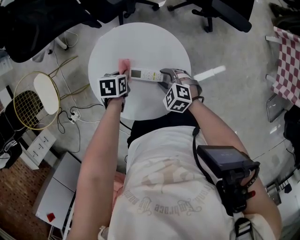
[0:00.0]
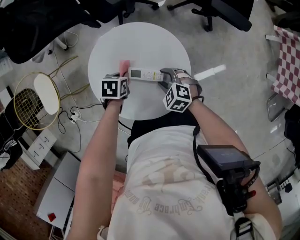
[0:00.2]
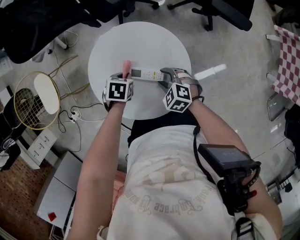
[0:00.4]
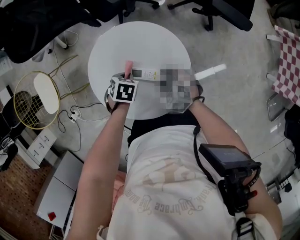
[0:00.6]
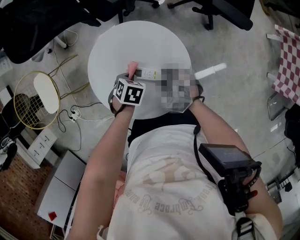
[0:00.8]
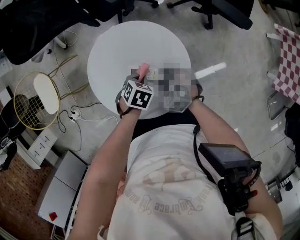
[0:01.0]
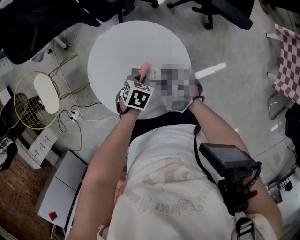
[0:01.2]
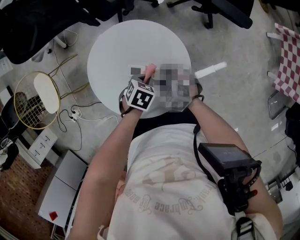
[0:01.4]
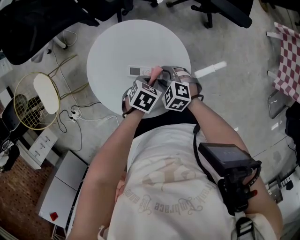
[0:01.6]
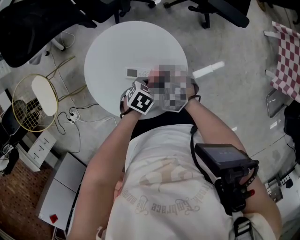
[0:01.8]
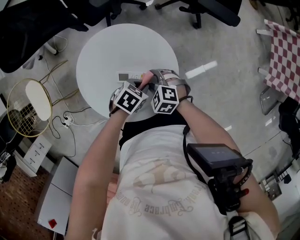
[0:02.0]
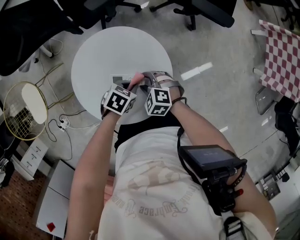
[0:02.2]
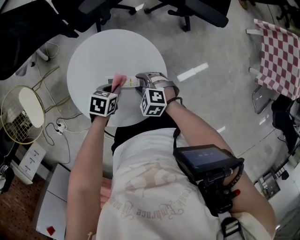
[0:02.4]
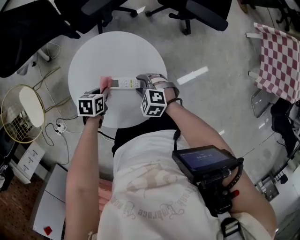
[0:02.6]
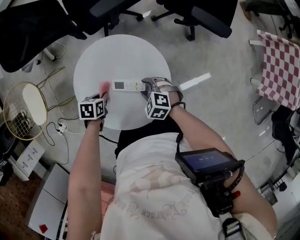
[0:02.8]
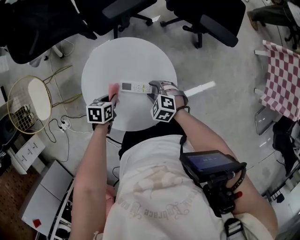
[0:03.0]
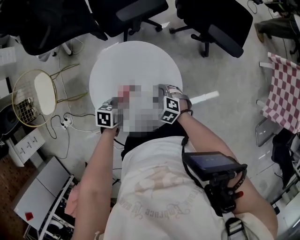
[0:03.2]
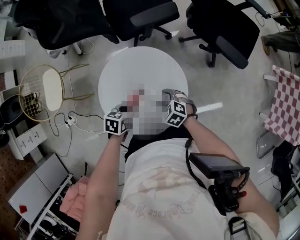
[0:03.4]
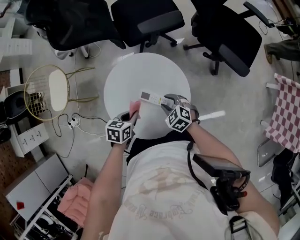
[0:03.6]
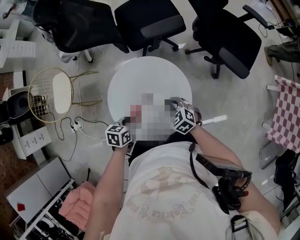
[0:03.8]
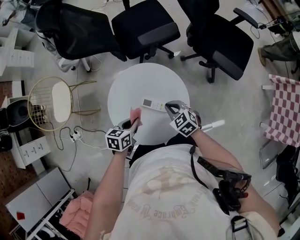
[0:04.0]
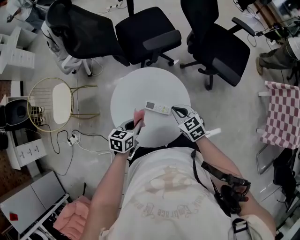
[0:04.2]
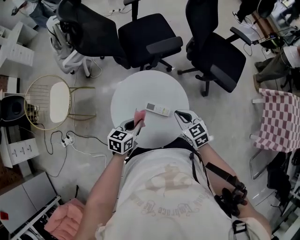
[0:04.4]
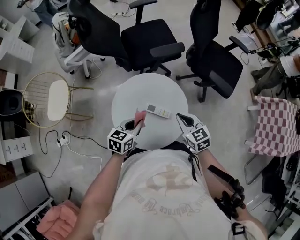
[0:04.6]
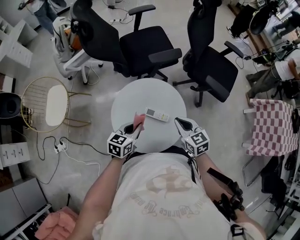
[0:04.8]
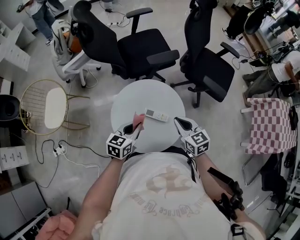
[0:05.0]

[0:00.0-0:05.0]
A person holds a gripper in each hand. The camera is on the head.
0.0 to 1.6 s: The left gripper changes place by about 15 cm, and changes its angle by roughly 30 degrees.
1.6 to 3.4 s: The left gripper shifts by approximately 10 cm, and turns by about 30 degrees.
3.4 to 5.0 s: The right gripper is displaced upward by roughly 25 cm, changes its angle by roughly 40 degrees, and closes its fingers. The left gripper is displaced upward by approximately 15 cm, and tips its fingers upward by about 30 degrees.

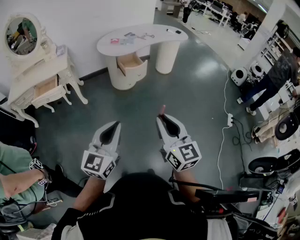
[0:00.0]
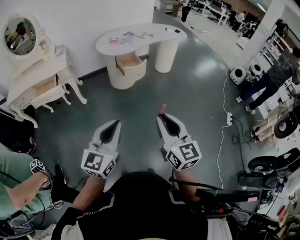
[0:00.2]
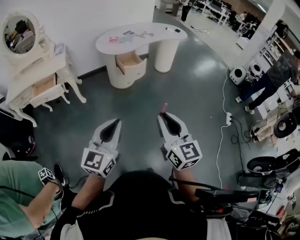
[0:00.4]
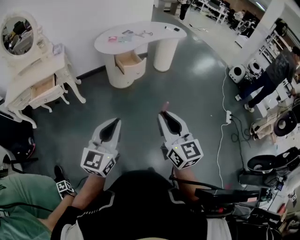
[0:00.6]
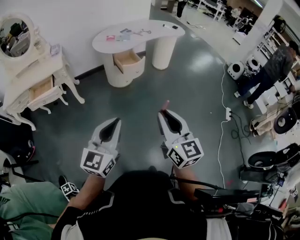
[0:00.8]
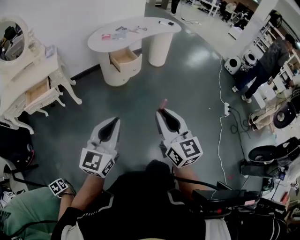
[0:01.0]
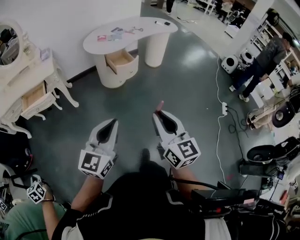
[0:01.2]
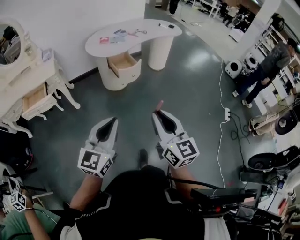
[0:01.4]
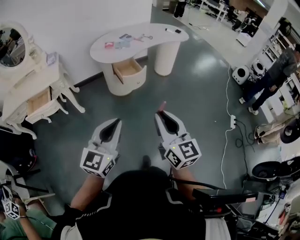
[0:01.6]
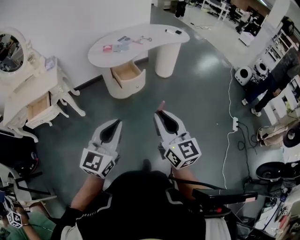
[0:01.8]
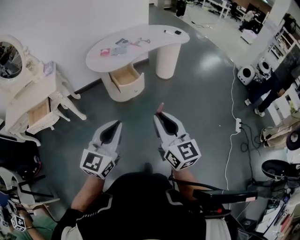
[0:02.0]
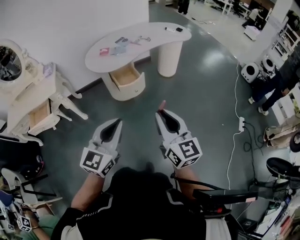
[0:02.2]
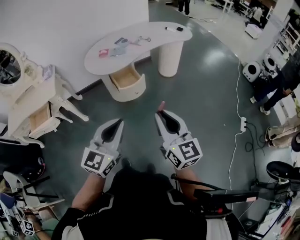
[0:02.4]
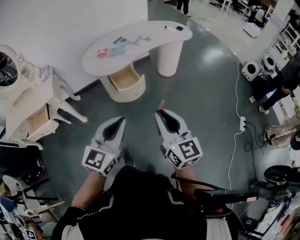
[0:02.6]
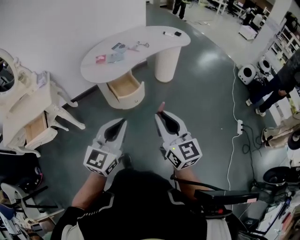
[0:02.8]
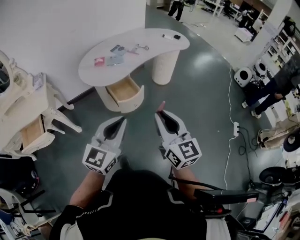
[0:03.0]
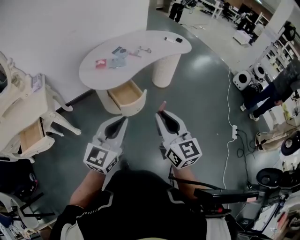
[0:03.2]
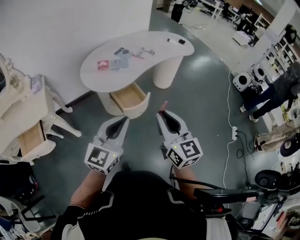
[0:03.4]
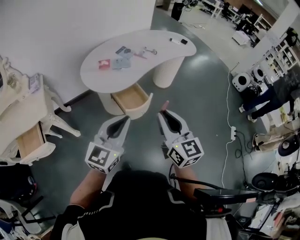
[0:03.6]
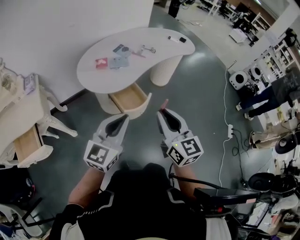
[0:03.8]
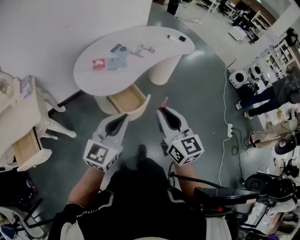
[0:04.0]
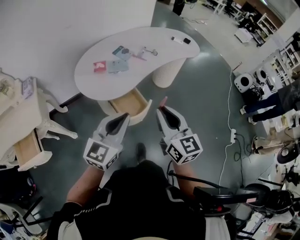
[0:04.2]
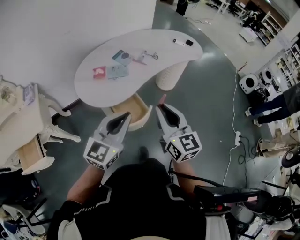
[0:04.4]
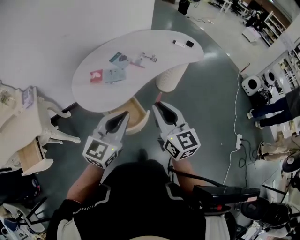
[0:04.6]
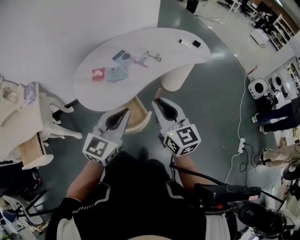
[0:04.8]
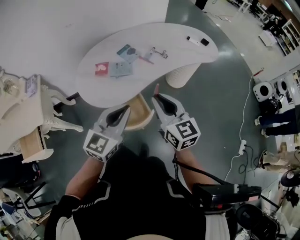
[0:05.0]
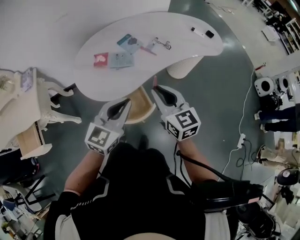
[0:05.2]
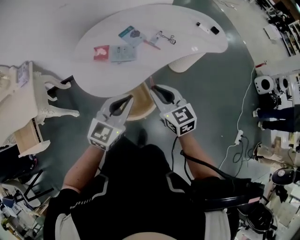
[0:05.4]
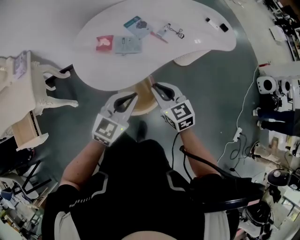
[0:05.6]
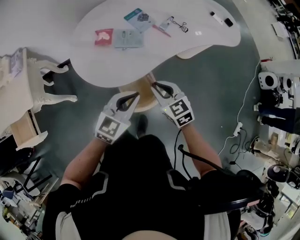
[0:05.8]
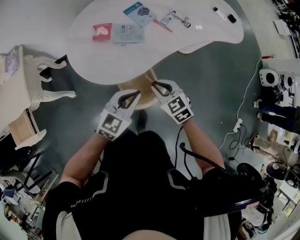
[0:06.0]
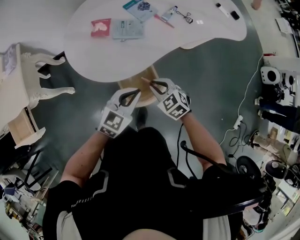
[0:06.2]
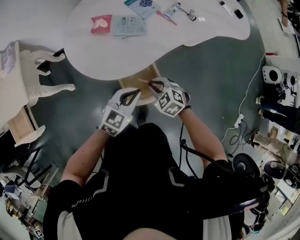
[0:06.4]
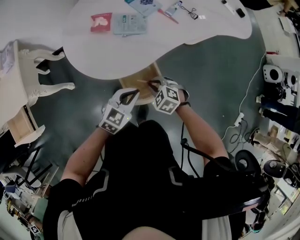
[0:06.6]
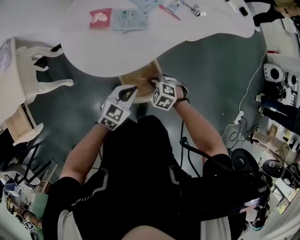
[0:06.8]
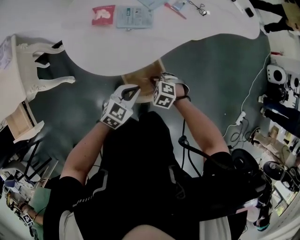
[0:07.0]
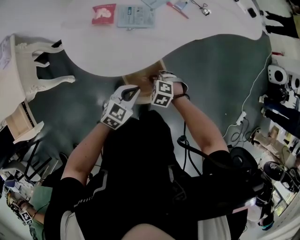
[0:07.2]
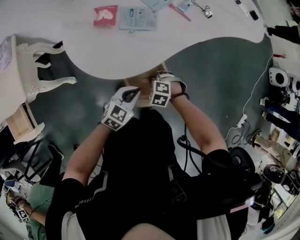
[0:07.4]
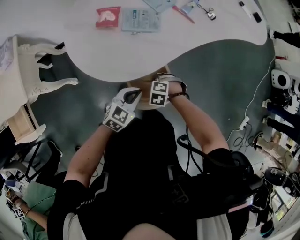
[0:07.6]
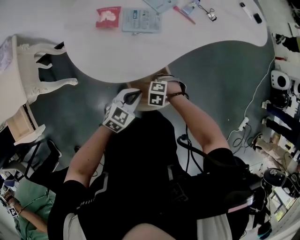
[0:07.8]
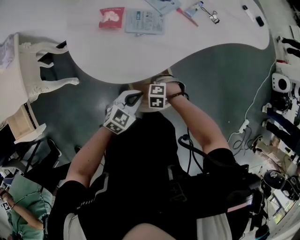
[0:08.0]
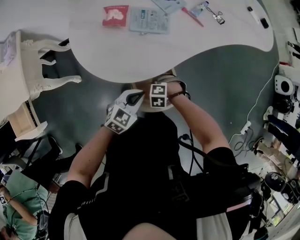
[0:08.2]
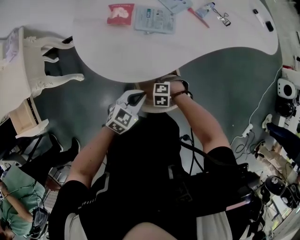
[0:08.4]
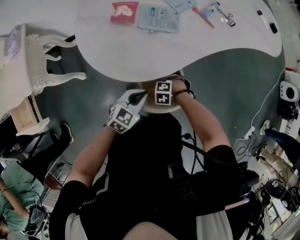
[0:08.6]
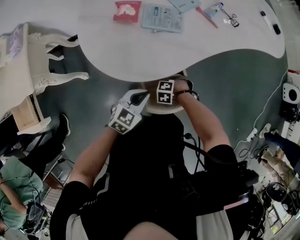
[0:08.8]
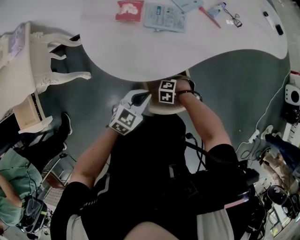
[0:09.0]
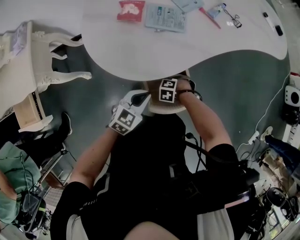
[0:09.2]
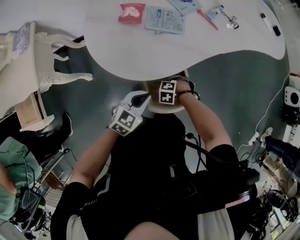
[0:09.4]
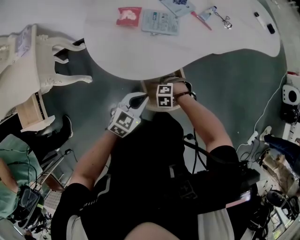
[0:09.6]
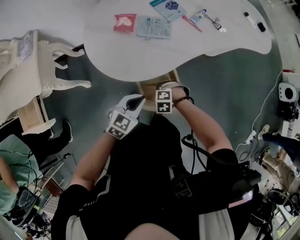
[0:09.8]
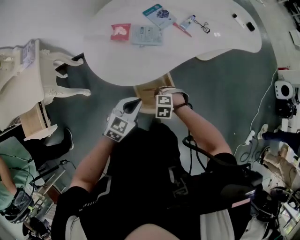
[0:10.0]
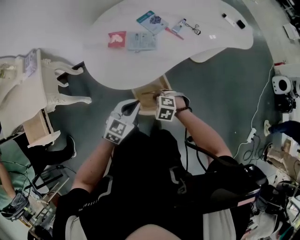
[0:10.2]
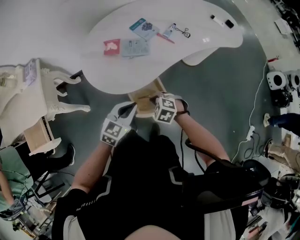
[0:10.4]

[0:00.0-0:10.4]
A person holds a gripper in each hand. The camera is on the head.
0.0 to 1.4 s: Both grippers travel together forward, some 10 cm.
1.4 to 3.0 s: Both grippers travel together forward, about 30 cm.
3.0 to 4.4 s: The two grippers go roughly 25 cm forward.
4.4 to 6.0 s: The two grippers go roughly 30 cm downward and forward. The right gripper tilts its fingers approximately 40 degrees downward.
6.0 to 7.4 s: Both grippers move downward, about 20 cm. The right gripper angles its fingers downward, by about 30 degrees.
7.4 to 9.0 s: The right gripper heads downward, covering roughly 10 cm.
9.0 to 10.4 s: Both grippers travel together upward, approximately 20 cm. The right gripper swivels some 30 degrees.

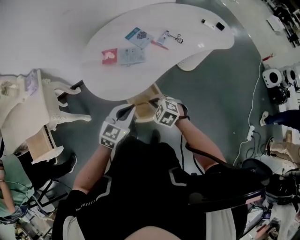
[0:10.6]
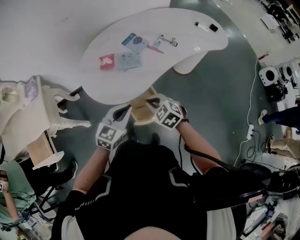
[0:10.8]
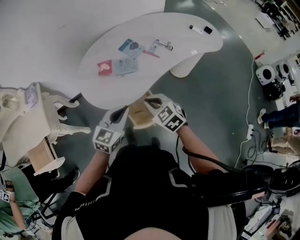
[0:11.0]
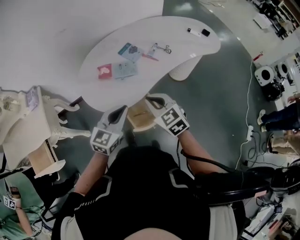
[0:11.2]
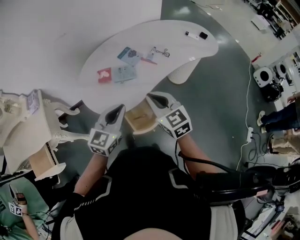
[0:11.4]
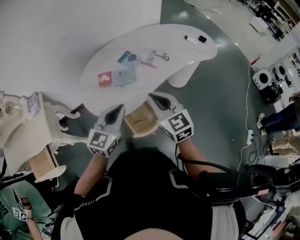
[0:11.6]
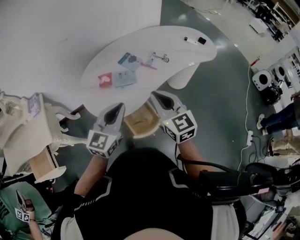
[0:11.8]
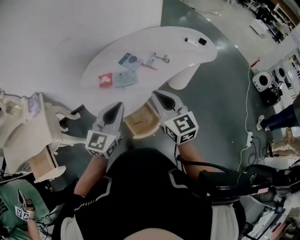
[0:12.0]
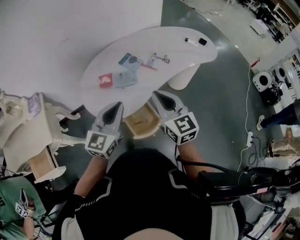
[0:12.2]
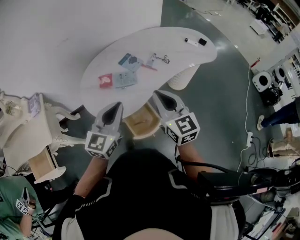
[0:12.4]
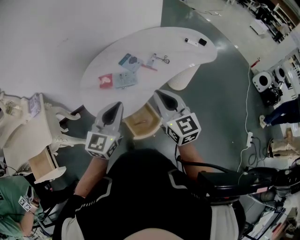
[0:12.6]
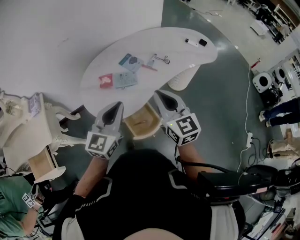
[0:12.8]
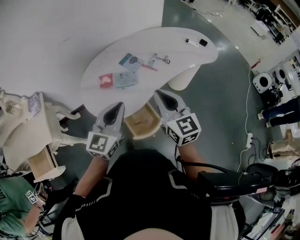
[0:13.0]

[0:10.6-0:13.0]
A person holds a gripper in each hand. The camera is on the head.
10.6 to 11.8 s: The right gripper goes about 25 cm upward, and tips its fingers upward by approximately 50 degrees. Meanwhile the left gripper moves upward, roughly 15 cm.
11.8 to 13.0 s: The grippers move only a little.

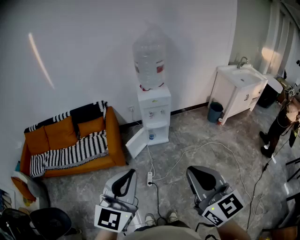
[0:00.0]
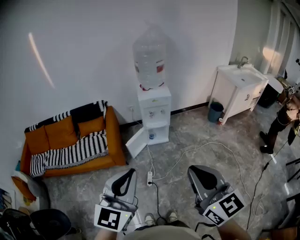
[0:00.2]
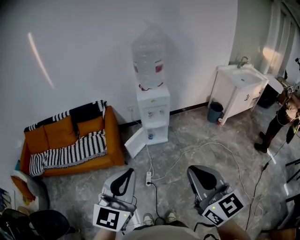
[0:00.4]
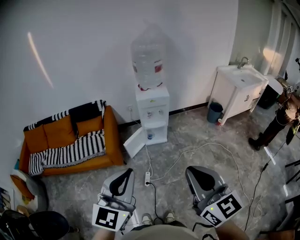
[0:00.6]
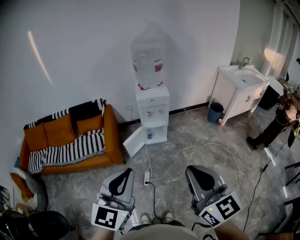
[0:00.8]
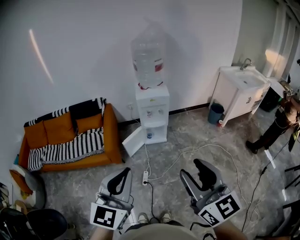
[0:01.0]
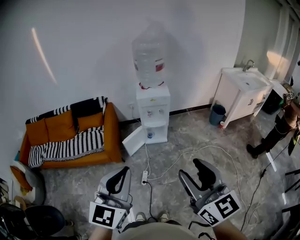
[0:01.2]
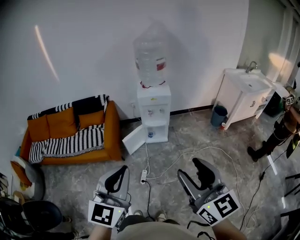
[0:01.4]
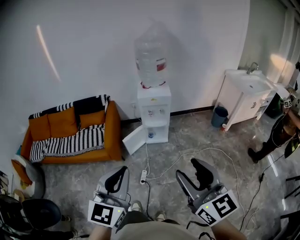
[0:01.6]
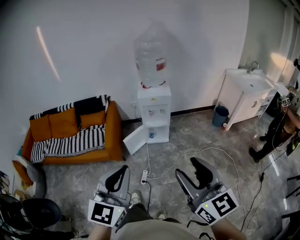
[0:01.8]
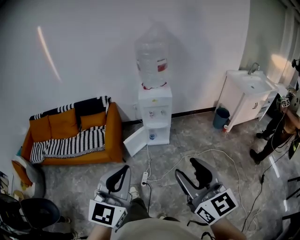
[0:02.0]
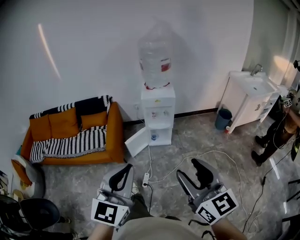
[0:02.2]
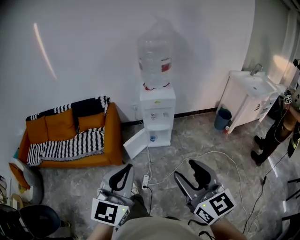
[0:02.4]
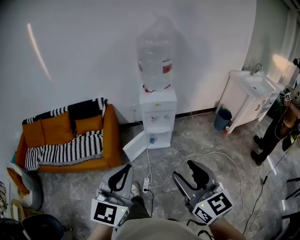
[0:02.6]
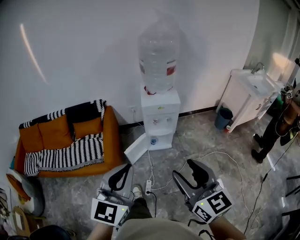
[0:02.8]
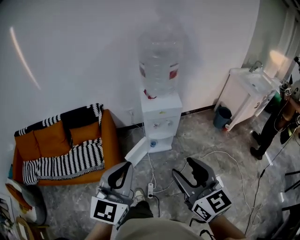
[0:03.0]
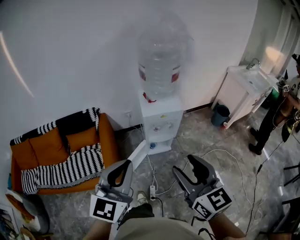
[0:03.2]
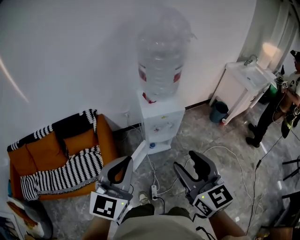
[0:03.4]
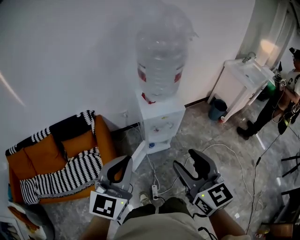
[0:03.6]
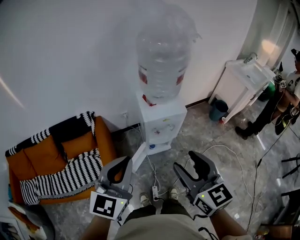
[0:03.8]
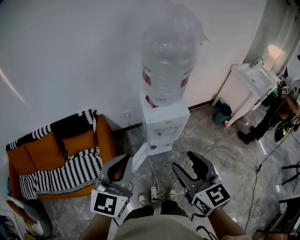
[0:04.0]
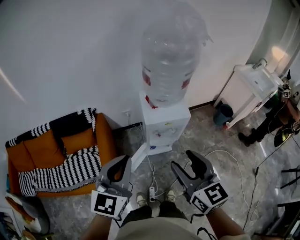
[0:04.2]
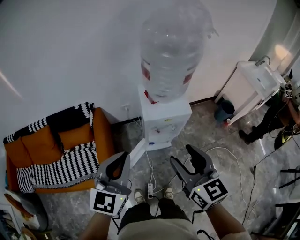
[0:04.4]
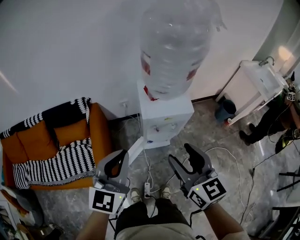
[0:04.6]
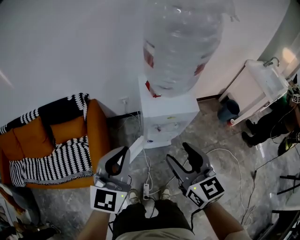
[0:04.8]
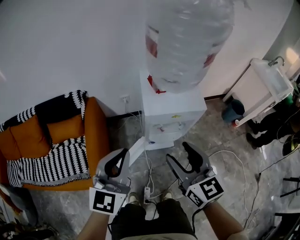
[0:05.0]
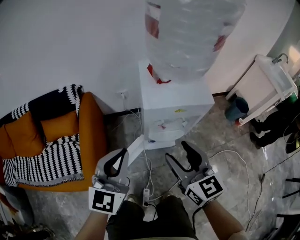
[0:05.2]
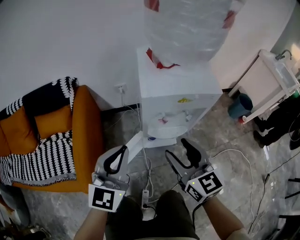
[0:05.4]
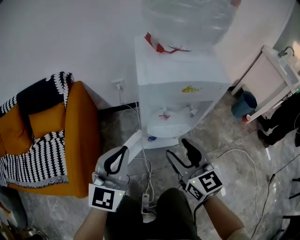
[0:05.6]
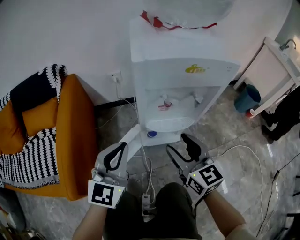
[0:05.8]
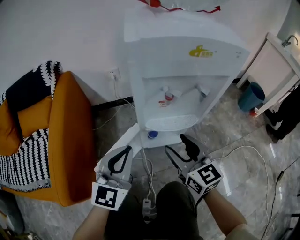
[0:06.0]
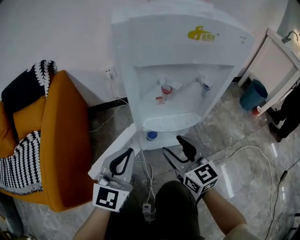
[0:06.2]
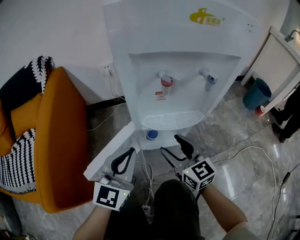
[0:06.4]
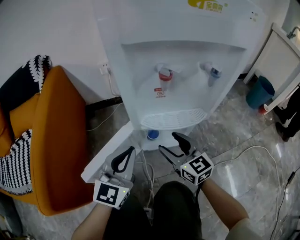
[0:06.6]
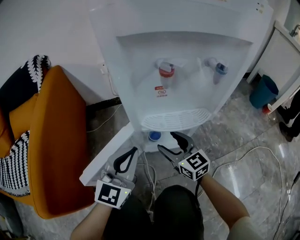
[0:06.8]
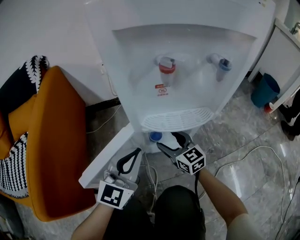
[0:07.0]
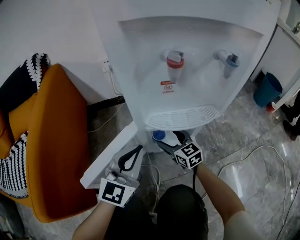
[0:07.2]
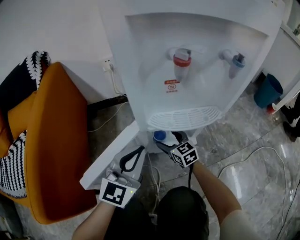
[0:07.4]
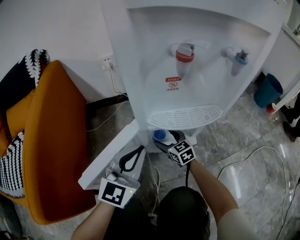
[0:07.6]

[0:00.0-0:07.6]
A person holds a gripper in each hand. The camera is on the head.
0.0 to 1.6 s: The grippers both shift to the right by about 10 cm. The right gripper opens up.
1.6 to 3.0 s: The right gripper goes roughly 30 cm forward and to the left. The left gripper heads forward, covering some 30 cm.
3.0 to 4.6 s: The left gripper heads forward and downward, covering some 25 cm; the right gripper goes some 25 cm forward.
4.6 to 6.0 s: Both grippers travel together downward, roughly 50 cm.
6.0 to 7.6 s: The left gripper shifts approximately 15 cm downward. The right gripper shifts about 35 cm downward.
